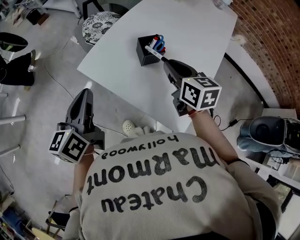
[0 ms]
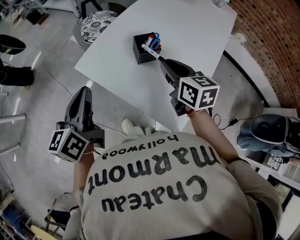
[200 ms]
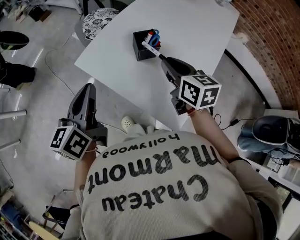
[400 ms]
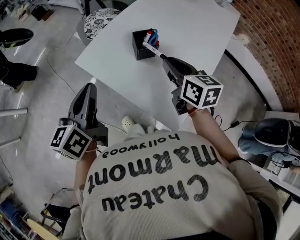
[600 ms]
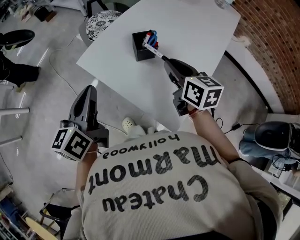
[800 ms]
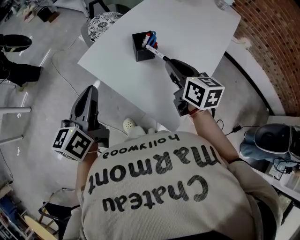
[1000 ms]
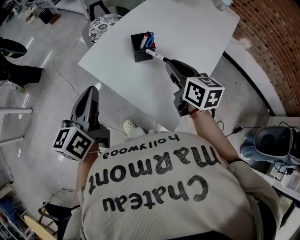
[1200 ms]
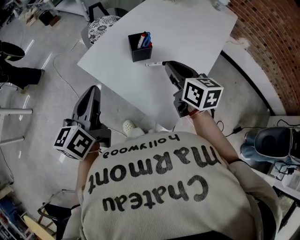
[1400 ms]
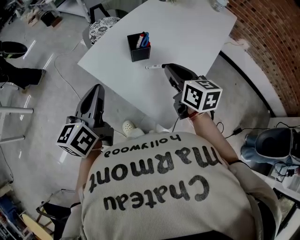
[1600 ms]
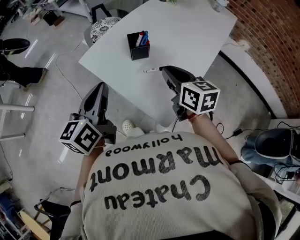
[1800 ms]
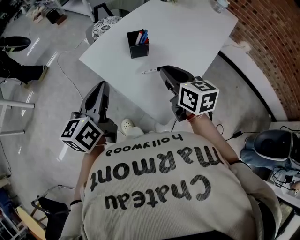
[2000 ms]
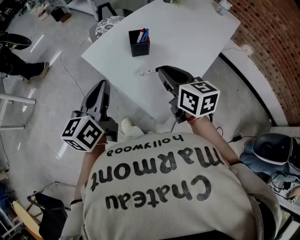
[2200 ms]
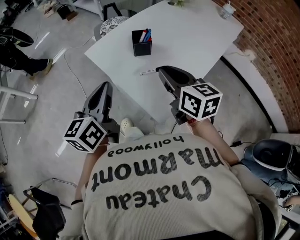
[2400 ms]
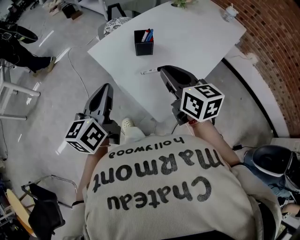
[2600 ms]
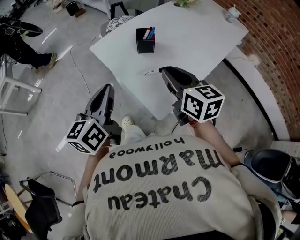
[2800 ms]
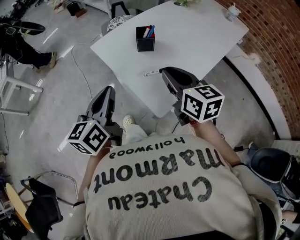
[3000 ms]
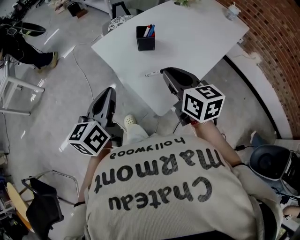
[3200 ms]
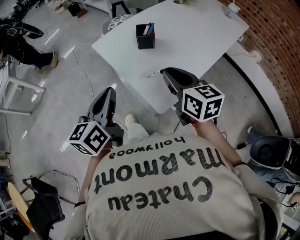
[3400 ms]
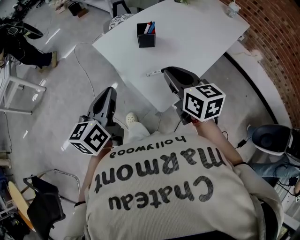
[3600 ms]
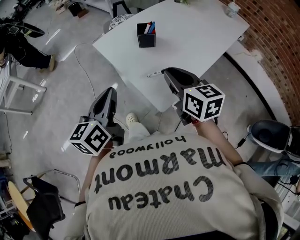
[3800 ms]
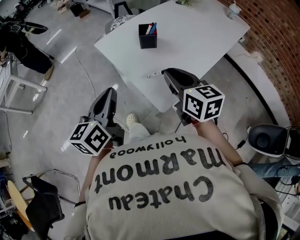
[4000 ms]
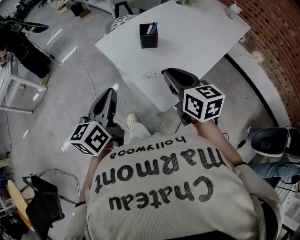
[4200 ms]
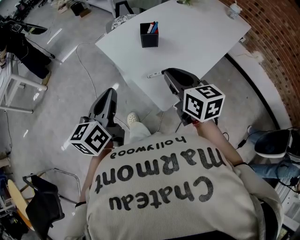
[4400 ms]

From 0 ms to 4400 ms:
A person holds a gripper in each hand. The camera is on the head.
From 0 ms to 1400 ms: The two grippers go about 10 cm to the right and backward.
From 1400 ms to 3000 ms: The right gripper goes some 10 cm backward, while the left gripper moves backward and to the right, about 15 cm.
From 3000 ms to 4400 ms: The grippers move only a little.

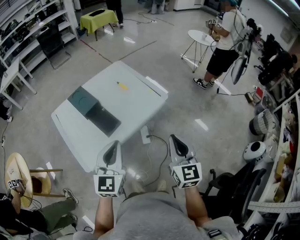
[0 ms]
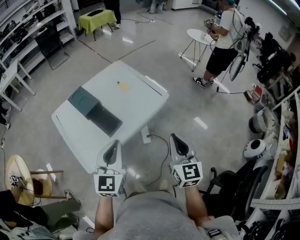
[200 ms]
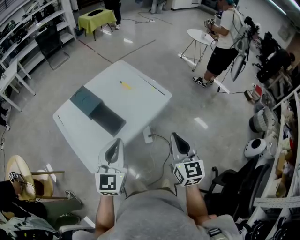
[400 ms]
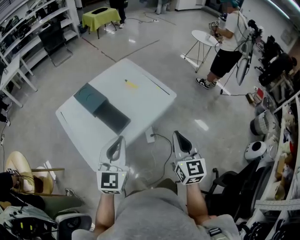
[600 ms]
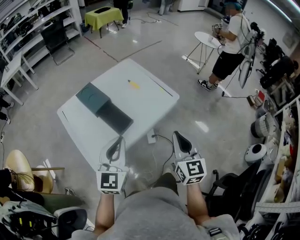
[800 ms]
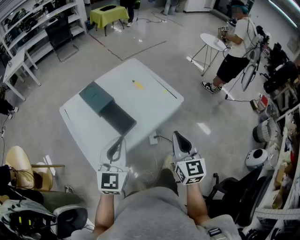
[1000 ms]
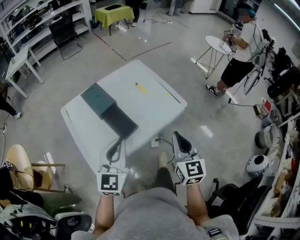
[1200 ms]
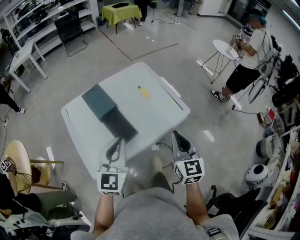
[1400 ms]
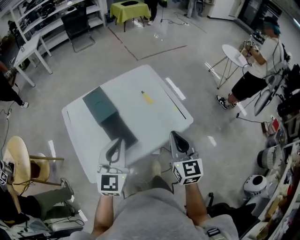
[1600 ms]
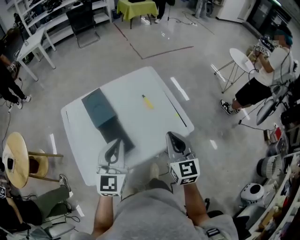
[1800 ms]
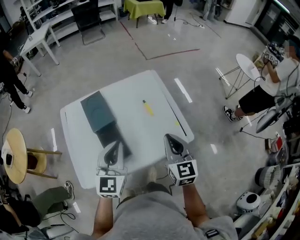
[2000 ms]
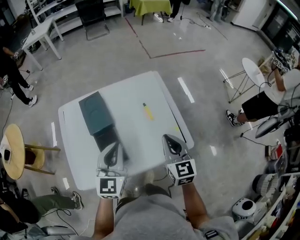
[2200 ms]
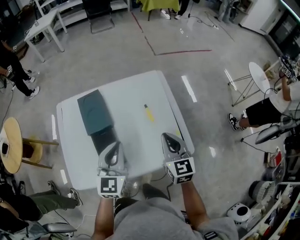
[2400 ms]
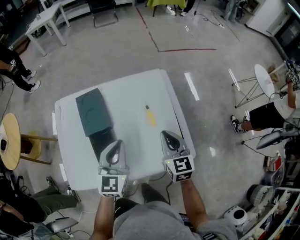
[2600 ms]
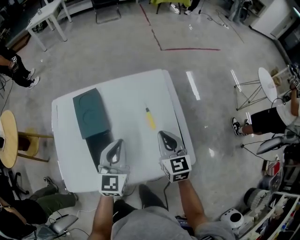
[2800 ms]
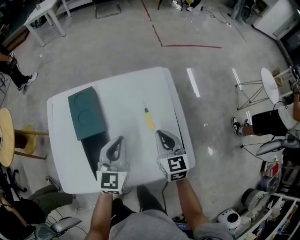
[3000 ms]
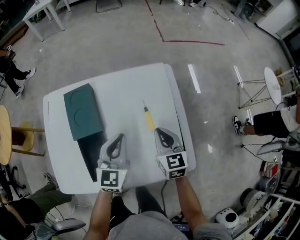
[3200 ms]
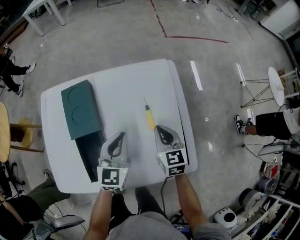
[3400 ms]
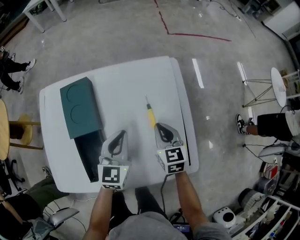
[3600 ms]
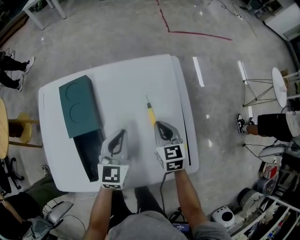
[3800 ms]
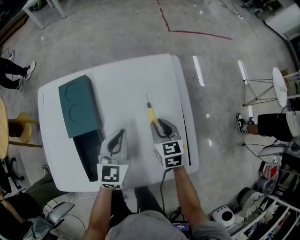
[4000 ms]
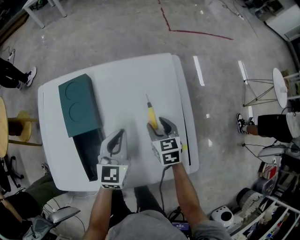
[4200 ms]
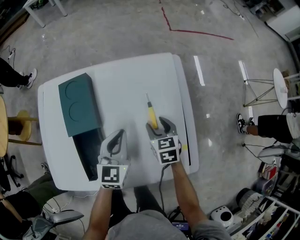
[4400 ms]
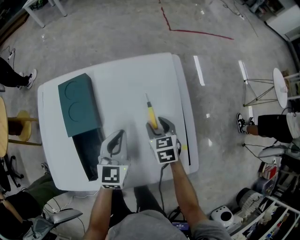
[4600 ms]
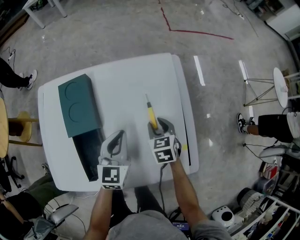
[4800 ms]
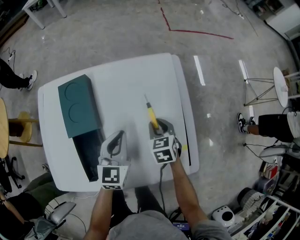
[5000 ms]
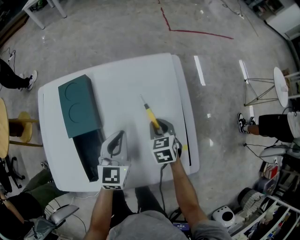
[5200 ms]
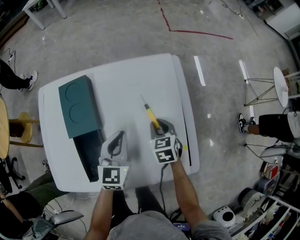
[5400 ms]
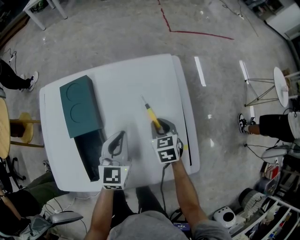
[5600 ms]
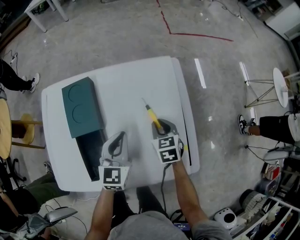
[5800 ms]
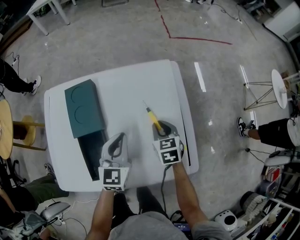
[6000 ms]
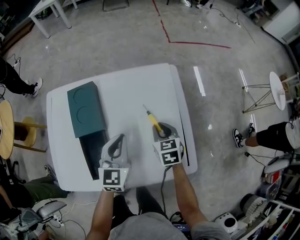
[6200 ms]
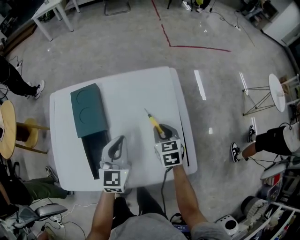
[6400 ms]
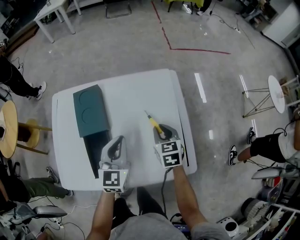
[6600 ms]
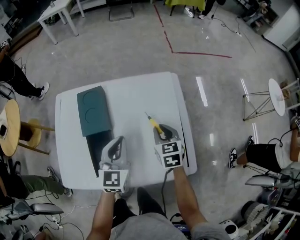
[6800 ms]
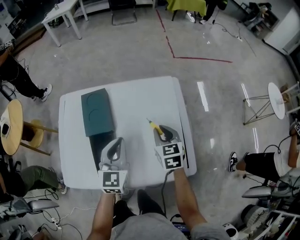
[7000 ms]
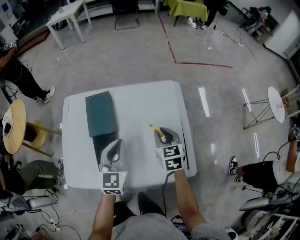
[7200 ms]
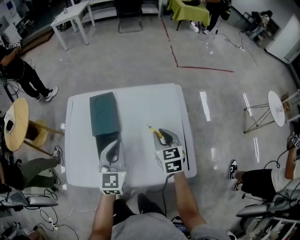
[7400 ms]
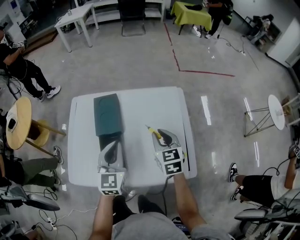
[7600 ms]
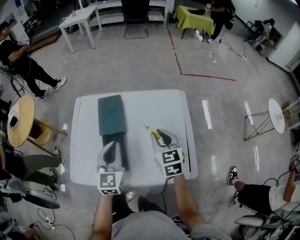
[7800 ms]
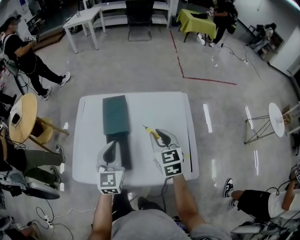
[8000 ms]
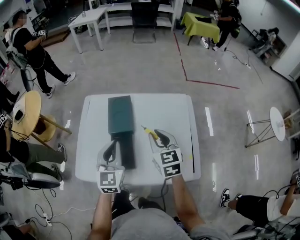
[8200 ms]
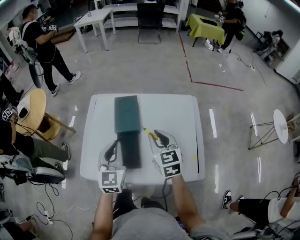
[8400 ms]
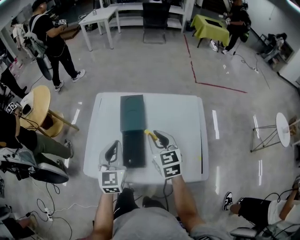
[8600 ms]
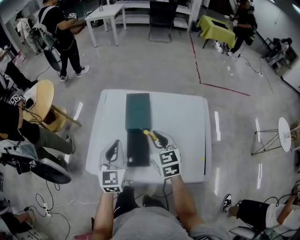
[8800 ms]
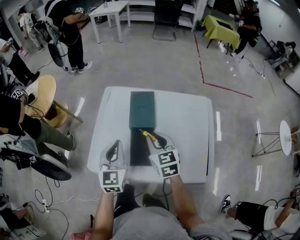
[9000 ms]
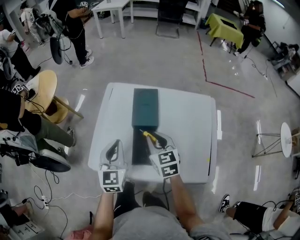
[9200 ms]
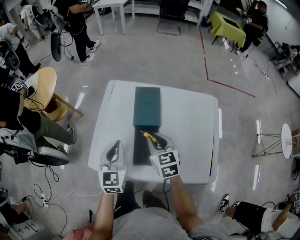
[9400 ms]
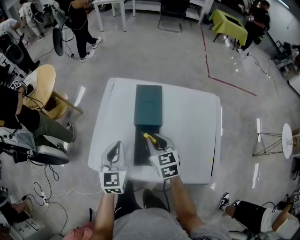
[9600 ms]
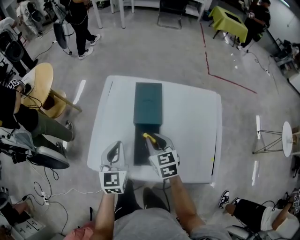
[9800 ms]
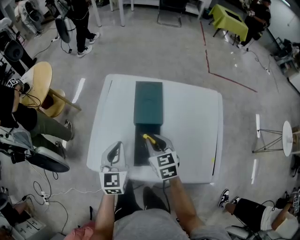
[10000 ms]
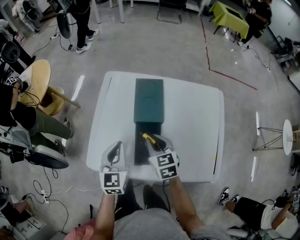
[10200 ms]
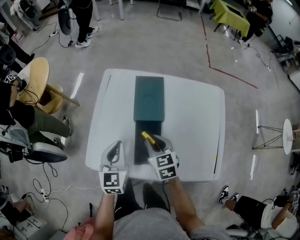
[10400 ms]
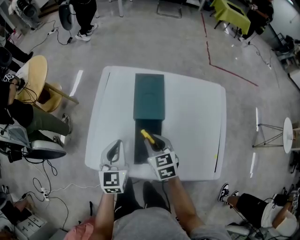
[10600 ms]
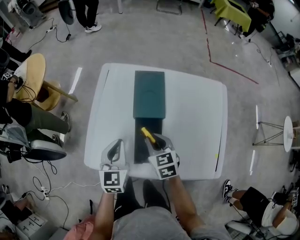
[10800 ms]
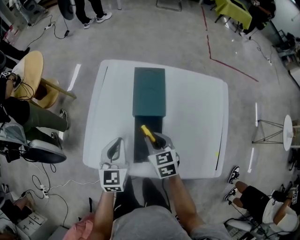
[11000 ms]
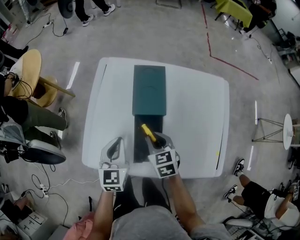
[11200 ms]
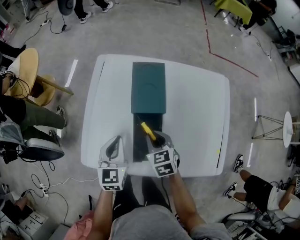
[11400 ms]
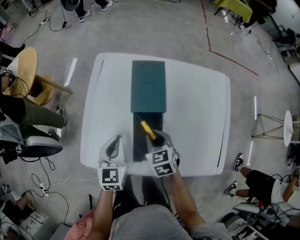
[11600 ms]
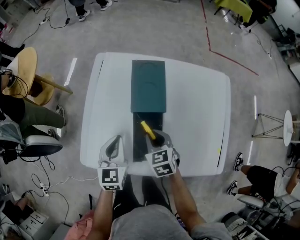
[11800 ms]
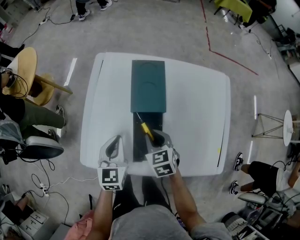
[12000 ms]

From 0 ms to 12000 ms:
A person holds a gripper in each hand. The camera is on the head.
From 0 ms to 1600 ms: The two grippers go roughly 20 cm forward and to the left.
From 1600 ms to 3000 ms: Both grippers travel together forward and downward, some 30 cm. The right gripper swivels approximately 30 degrees.
From 3000 ms to 4400 ms: The right gripper heads downward and forward, covering approximately 15 cm, and opens its fingers; the left gripper is displaced downward by about 10 cm.
From 4400 ms to 6000 ms: The right gripper closes.
From 6000 ms to 7600 ms: The right gripper is displaced upward by about 20 cm. Meanwhile the left gripper shifts about 15 cm upward, to the left and backward.
From 7600 ms to 9000 ms: The two grippers go some 20 cm to the left.
From 9000 ms to 10400 ms: Both grippers move downward, approximately 10 cm.
From 10400 ms to 12000 ms: Both grippers move downward, some 5 cm.

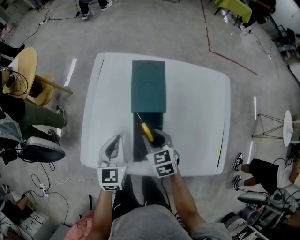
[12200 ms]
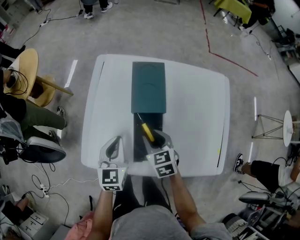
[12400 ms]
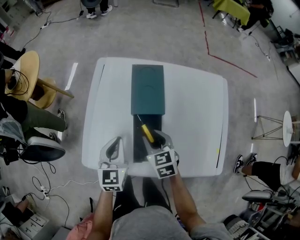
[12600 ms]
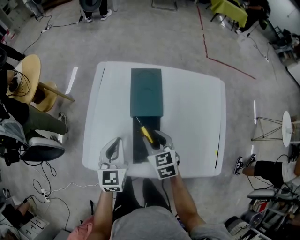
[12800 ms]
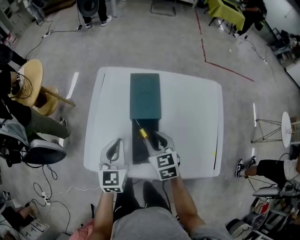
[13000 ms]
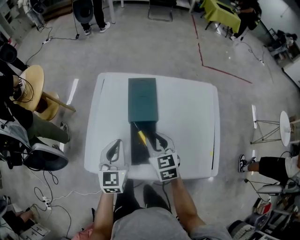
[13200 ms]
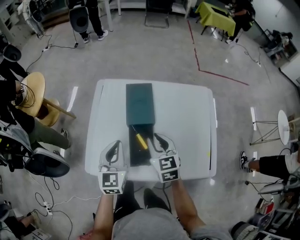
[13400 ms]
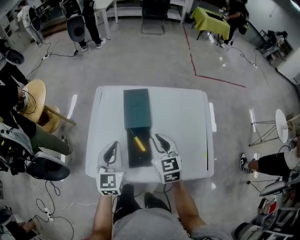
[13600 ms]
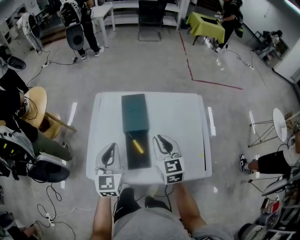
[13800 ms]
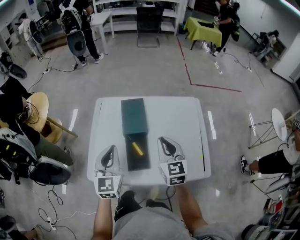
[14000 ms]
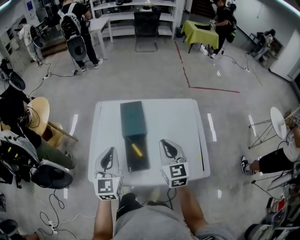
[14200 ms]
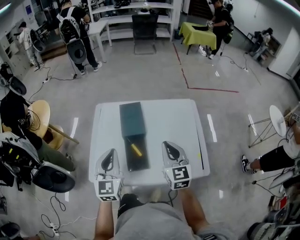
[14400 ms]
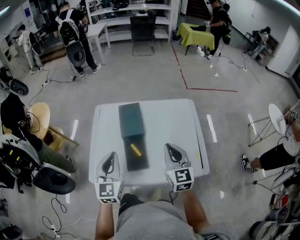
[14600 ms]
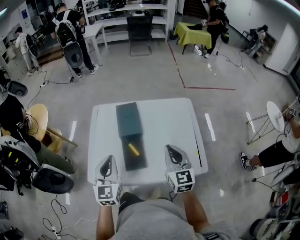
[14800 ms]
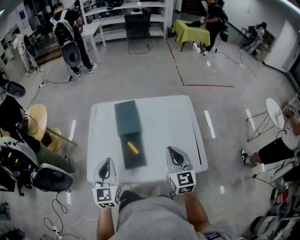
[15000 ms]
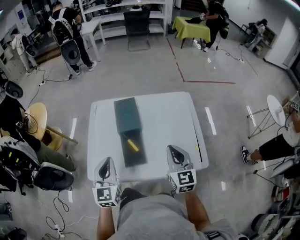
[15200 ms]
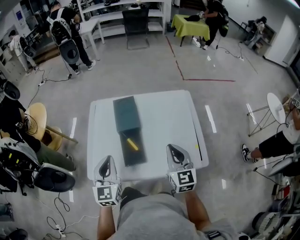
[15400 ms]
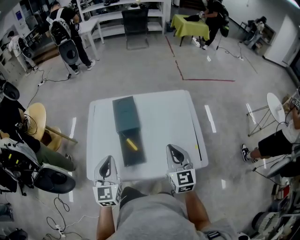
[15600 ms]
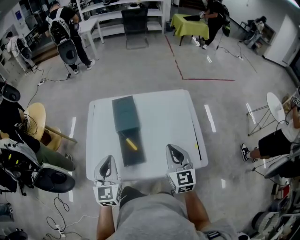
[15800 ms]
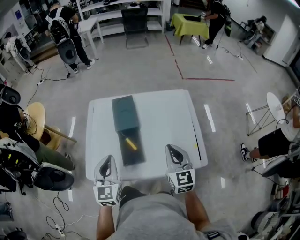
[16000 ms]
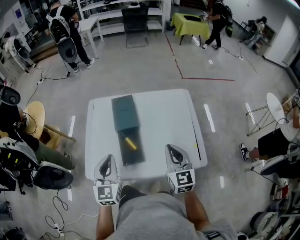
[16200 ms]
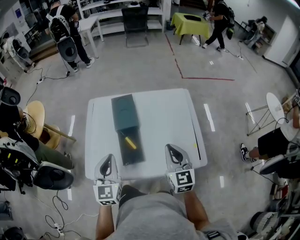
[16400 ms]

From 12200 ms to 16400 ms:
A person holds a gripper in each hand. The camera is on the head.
From 12200 ms to 13600 ms: Both grippers move upward, some 15 cm. The right gripper swivels approximately 20 degrees.
From 13600 ms to 15000 ms: The right gripper travels to the right, backward and upward by roughly 20 cm; the left gripper shifts approximately 10 cm backward.
From 15000 ms to 16400 ms: The grippers stay close to where they were, moving slightly.

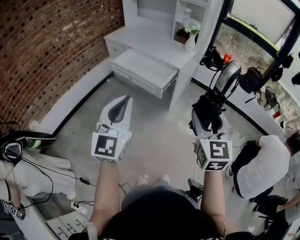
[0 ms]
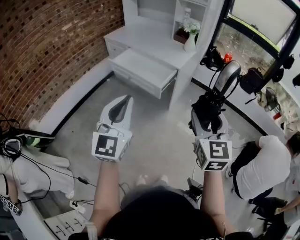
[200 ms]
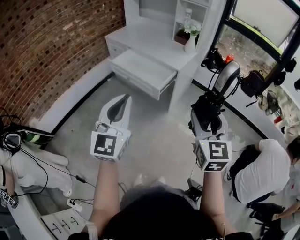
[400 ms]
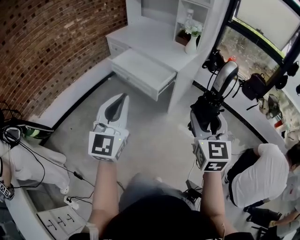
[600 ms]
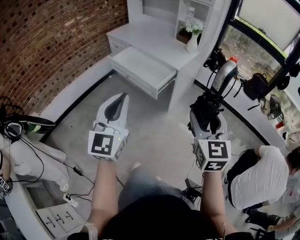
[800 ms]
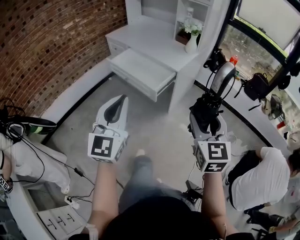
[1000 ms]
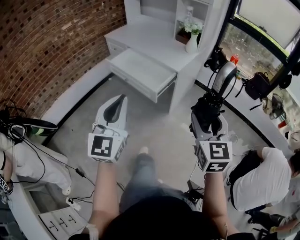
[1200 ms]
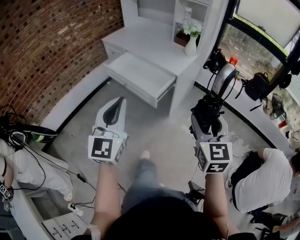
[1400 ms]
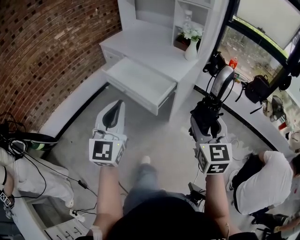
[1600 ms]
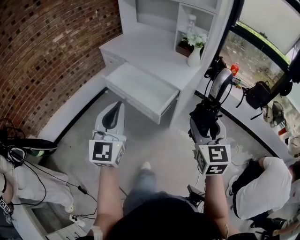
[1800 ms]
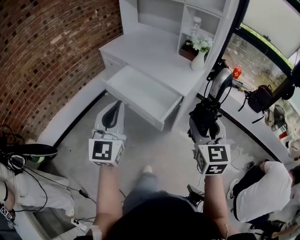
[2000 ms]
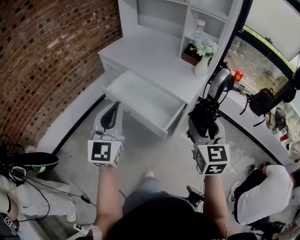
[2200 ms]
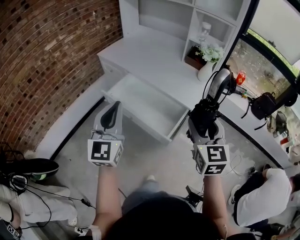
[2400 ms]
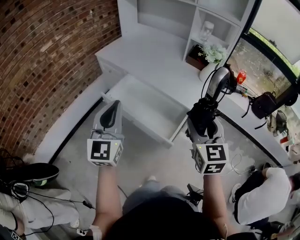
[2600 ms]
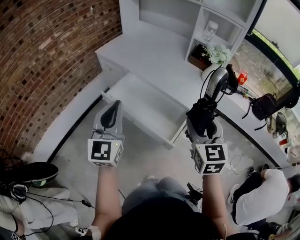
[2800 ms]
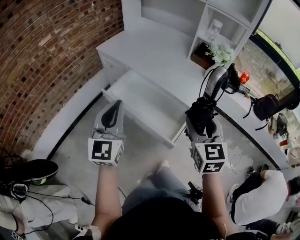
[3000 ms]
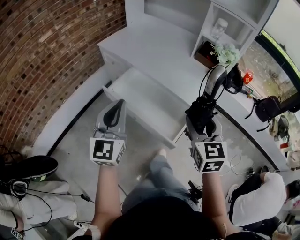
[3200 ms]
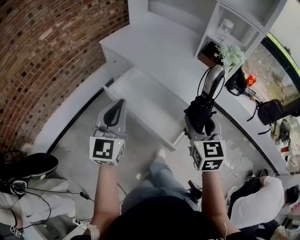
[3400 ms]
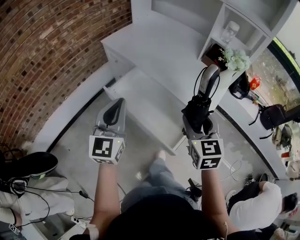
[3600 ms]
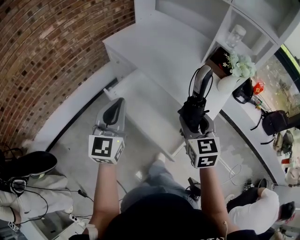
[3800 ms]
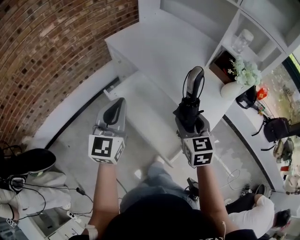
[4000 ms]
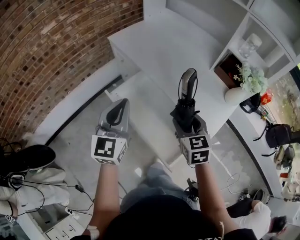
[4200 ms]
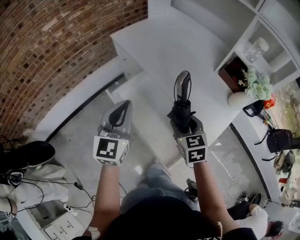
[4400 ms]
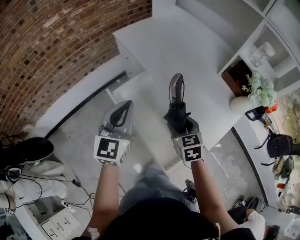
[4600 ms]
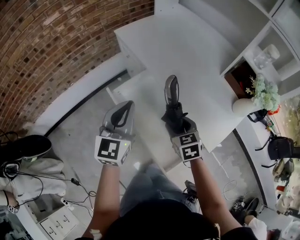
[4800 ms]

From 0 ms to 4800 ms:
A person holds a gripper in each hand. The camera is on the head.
From 0 ms to 1600 ms: Both grippers travel together forward, some 15 cm.
From 1600 ms to 3200 ms: Both grippers travel together forward and to the left, some 35 cm.
From 3200 ms to 4800 ms: The right gripper travels forward and downward by approximately 30 cm, and changes its angle by approximately 40 degrees. The left gripper travels forward and downward by some 20 cm.
